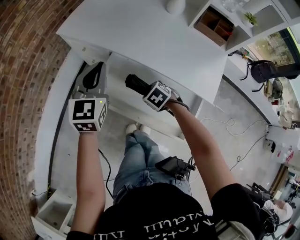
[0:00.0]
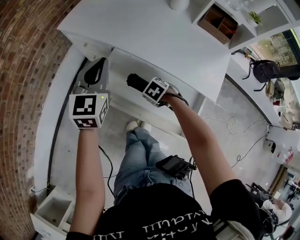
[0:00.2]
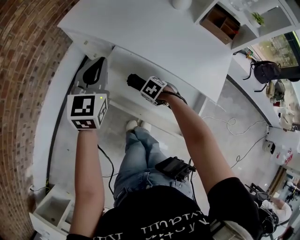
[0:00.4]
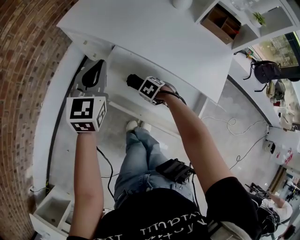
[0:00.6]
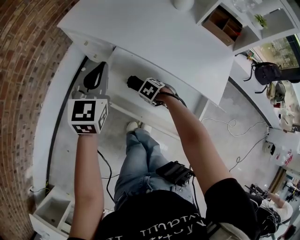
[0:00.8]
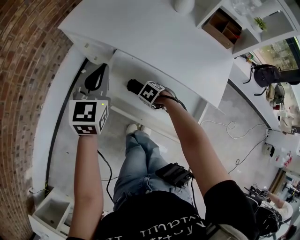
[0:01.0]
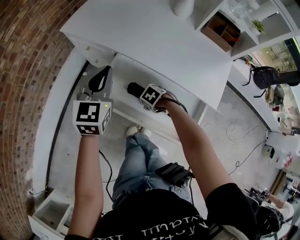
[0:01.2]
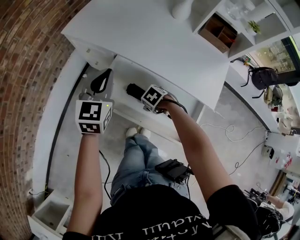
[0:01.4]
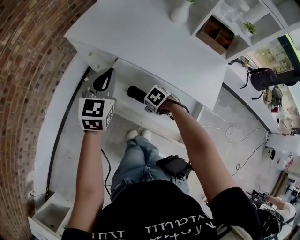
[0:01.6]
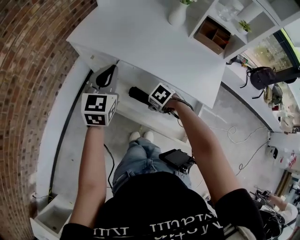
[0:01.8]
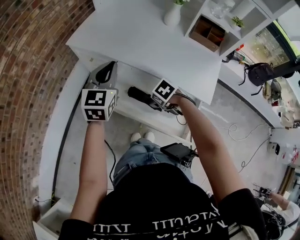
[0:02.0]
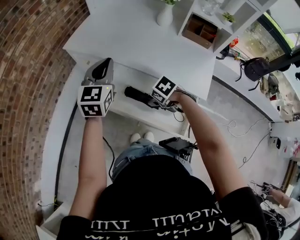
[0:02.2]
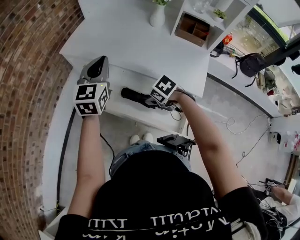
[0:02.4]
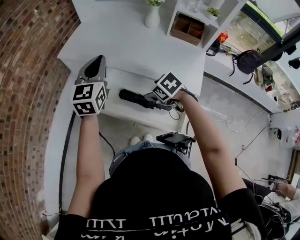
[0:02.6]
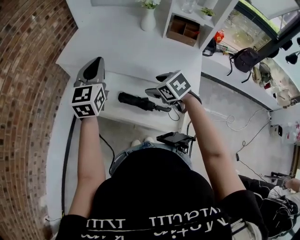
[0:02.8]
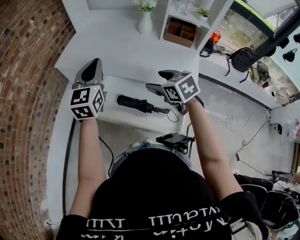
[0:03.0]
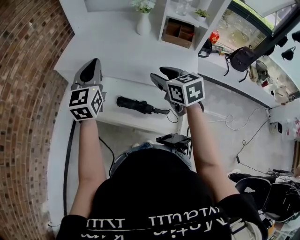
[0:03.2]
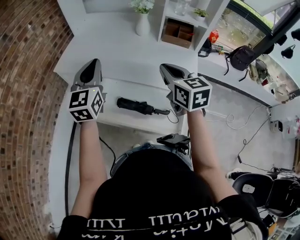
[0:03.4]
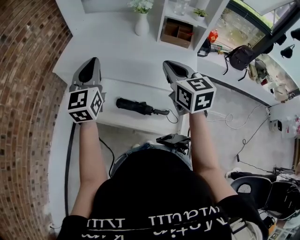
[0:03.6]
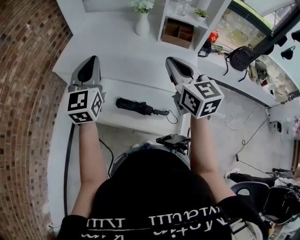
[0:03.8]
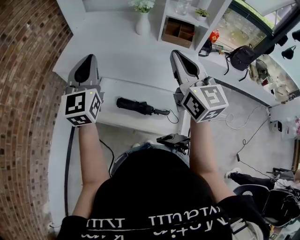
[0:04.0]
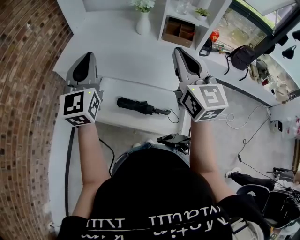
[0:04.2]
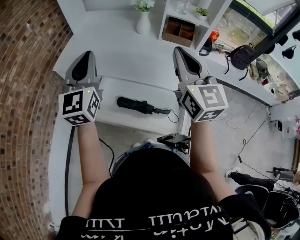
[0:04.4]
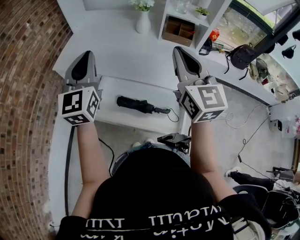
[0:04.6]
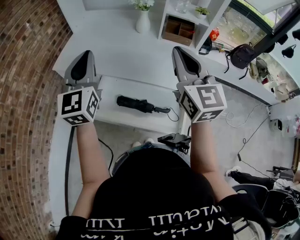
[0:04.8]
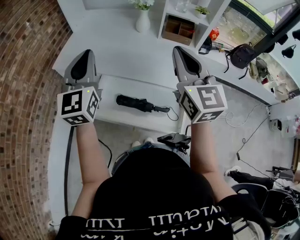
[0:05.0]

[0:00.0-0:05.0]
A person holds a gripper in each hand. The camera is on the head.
0:00.0 to 0:01.6: The right gripper reaches roughly 10 cm downward, then returns, and opens.
0:01.6 to 0:03.4: The right gripper moves upward, about 35 cm, tilts its fingers roughly 60 degrees upward, and closes its fingers. Meanwhile the left gripper goes roughly 15 cm upward.
0:03.4 to 0:05.0: The left gripper shifts roughly 5 cm upward. The right gripper travels upward by approximately 10 cm, and swivels approximately 30 degrees.

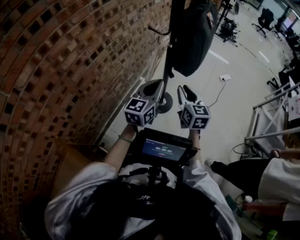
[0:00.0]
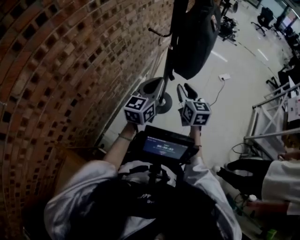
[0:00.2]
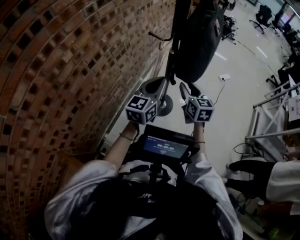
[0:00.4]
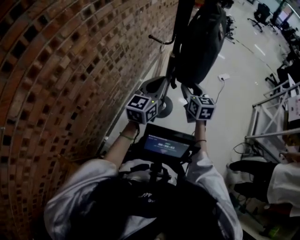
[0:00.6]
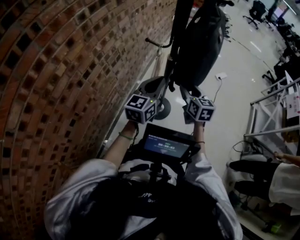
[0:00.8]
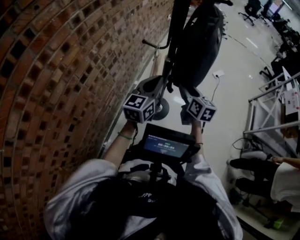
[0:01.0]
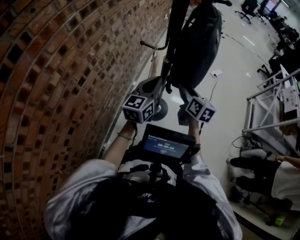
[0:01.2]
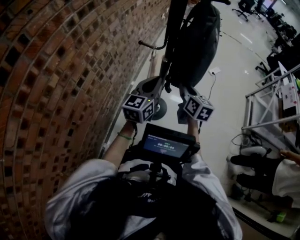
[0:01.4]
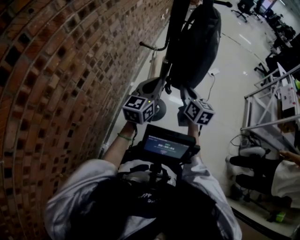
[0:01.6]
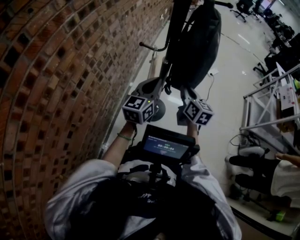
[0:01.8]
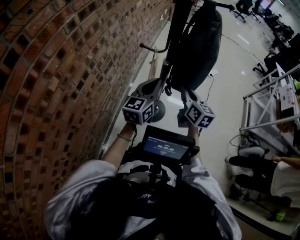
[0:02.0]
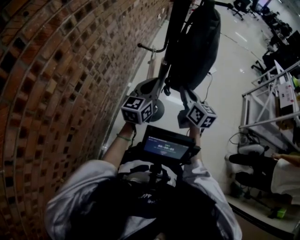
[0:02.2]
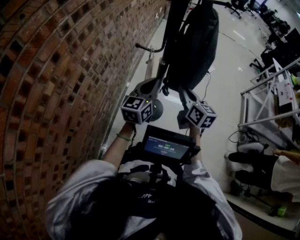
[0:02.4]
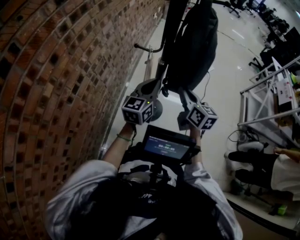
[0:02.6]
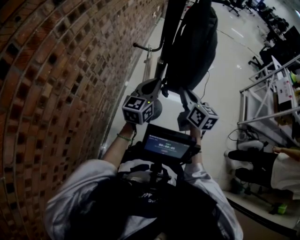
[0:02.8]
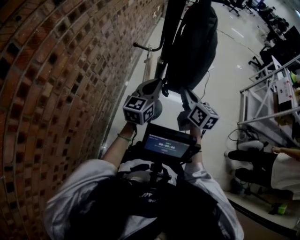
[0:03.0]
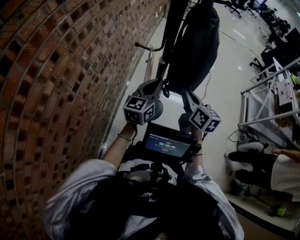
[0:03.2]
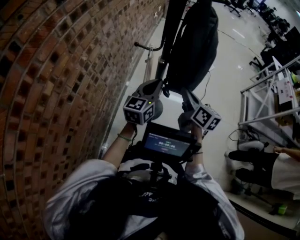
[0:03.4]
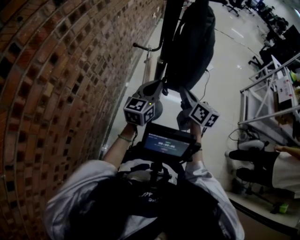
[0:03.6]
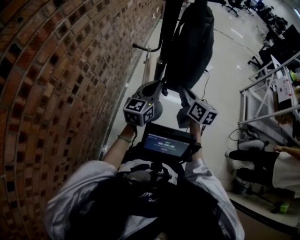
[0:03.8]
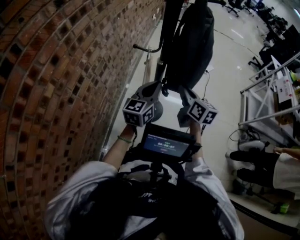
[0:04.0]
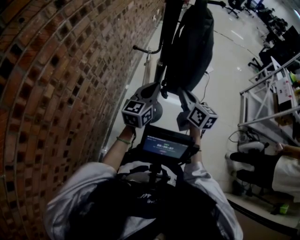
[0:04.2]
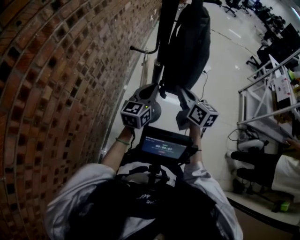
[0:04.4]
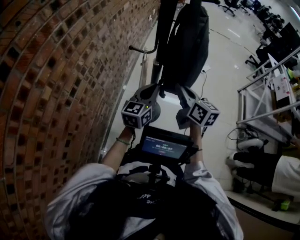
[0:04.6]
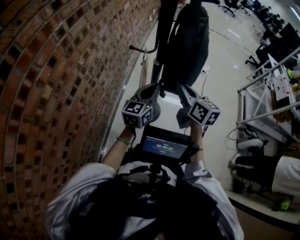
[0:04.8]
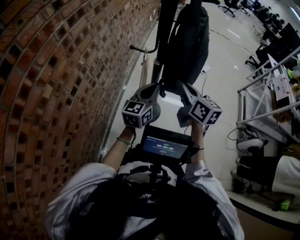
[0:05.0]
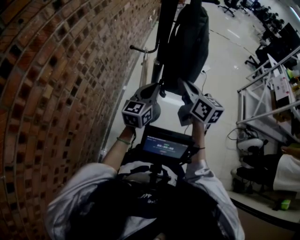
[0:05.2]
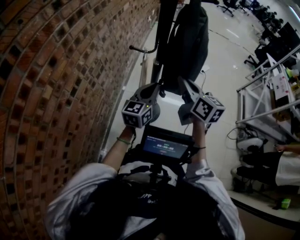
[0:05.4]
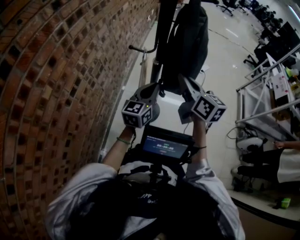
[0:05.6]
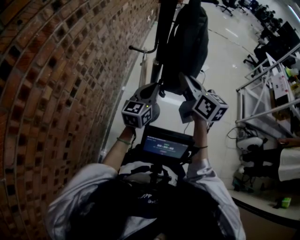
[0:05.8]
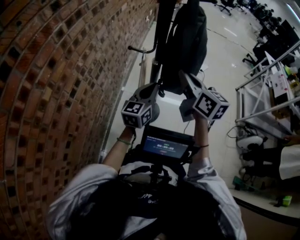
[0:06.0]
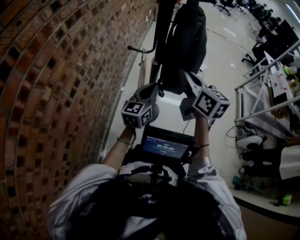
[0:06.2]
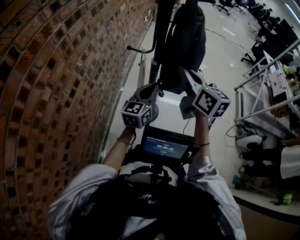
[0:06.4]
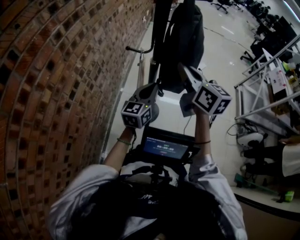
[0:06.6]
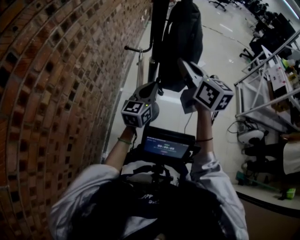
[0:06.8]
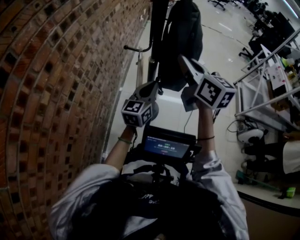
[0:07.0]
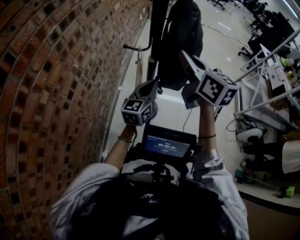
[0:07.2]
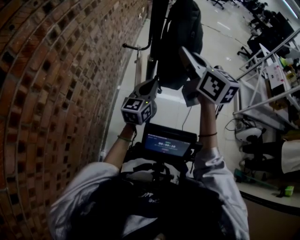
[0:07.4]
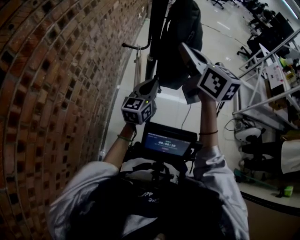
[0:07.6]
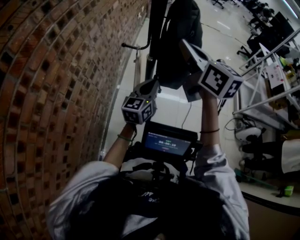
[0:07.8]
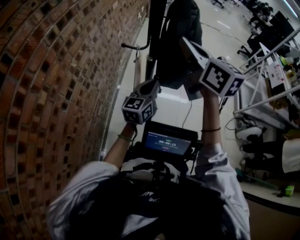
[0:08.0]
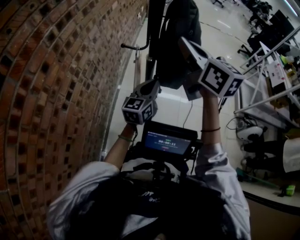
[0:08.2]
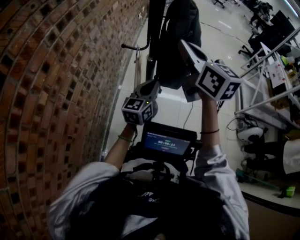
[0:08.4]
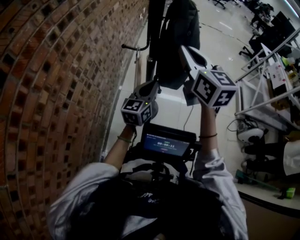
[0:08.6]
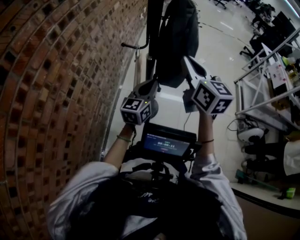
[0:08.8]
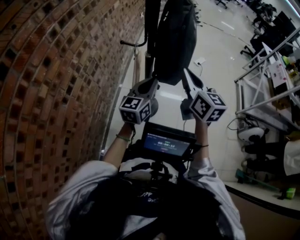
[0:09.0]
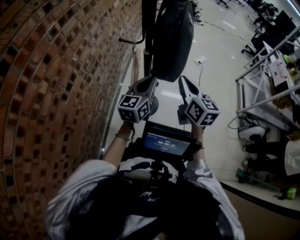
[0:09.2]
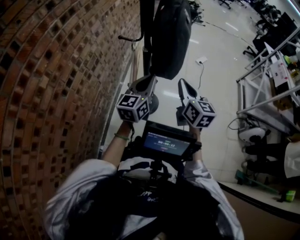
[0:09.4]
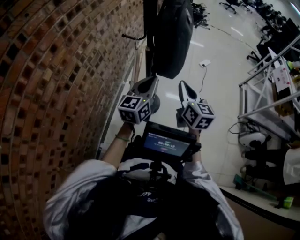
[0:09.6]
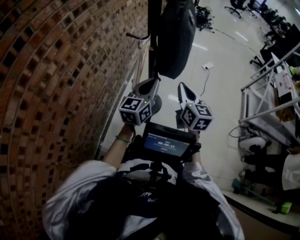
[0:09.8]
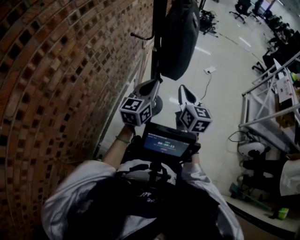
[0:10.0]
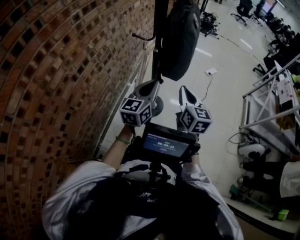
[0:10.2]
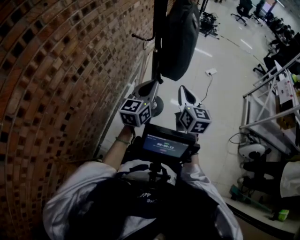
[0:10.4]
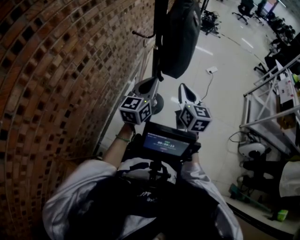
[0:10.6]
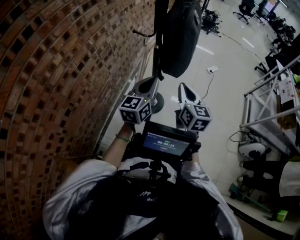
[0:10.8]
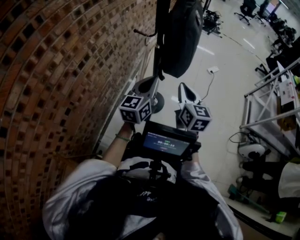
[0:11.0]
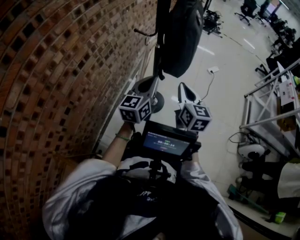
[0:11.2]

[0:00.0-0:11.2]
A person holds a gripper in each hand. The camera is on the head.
0:00.0 to 0:01.6: The two grippers go roughly 15 cm forward. The right gripper turns by approximately 20 degrees, and closes up.
0:01.6 to 0:03.2: The grippers make only small movements.
0:03.2 to 0:04.8: The grippers make only small movements.
0:04.8 to 0:06.4: The right gripper moves upward, some 10 cm.
0:06.4 to 0:08.0: The right gripper is displaced upward by roughly 10 cm.
0:08.0 to 0:09.6: The left gripper shifts some 10 cm backward, while the right gripper travels downward, backward and to the right by roughly 25 cm.
0:09.6 to 0:11.2: The grippers stay close to where they were, moving slightly.

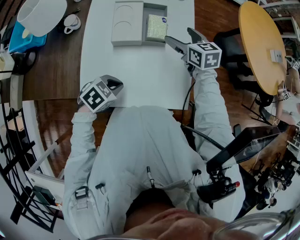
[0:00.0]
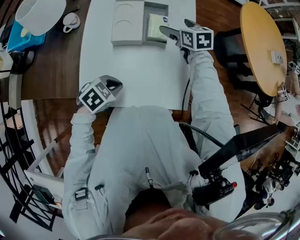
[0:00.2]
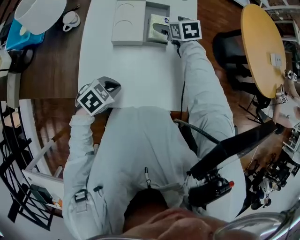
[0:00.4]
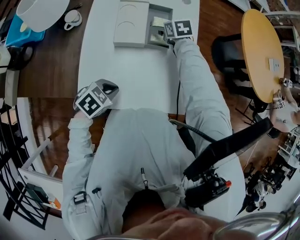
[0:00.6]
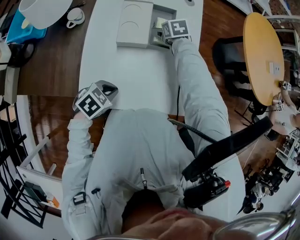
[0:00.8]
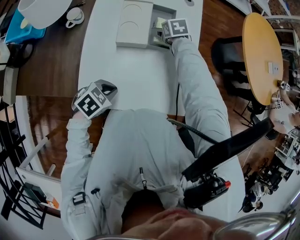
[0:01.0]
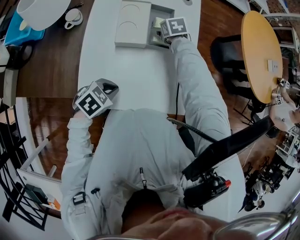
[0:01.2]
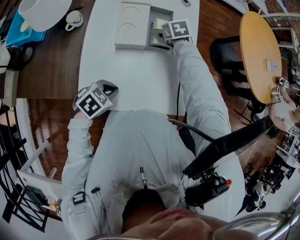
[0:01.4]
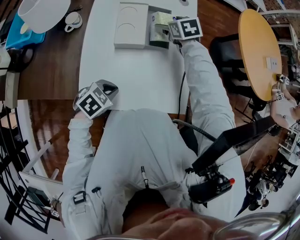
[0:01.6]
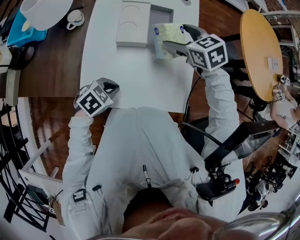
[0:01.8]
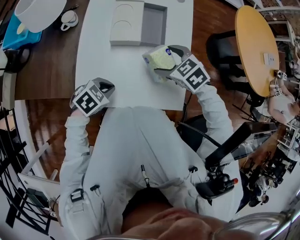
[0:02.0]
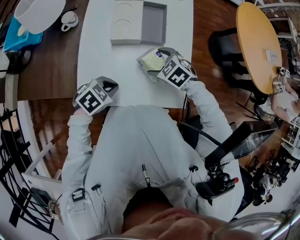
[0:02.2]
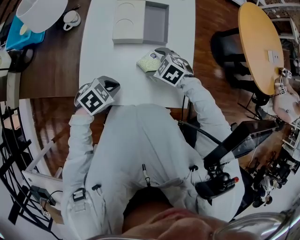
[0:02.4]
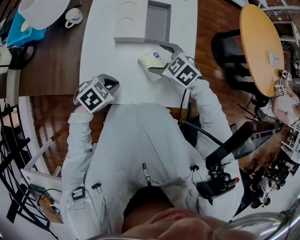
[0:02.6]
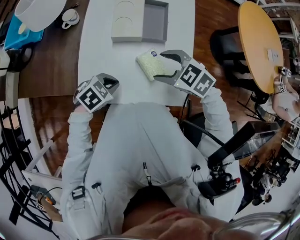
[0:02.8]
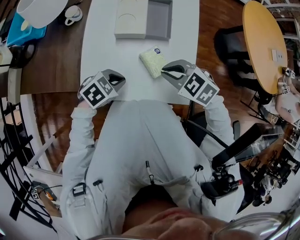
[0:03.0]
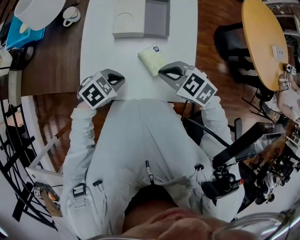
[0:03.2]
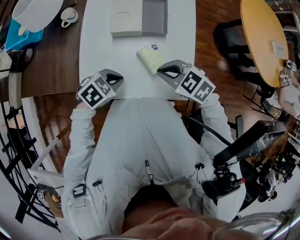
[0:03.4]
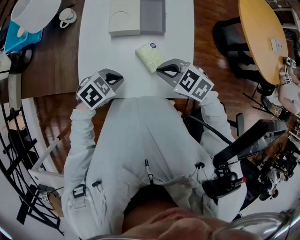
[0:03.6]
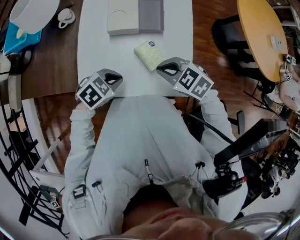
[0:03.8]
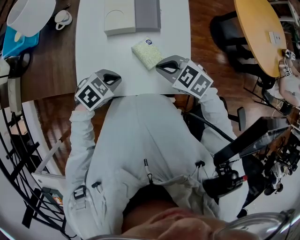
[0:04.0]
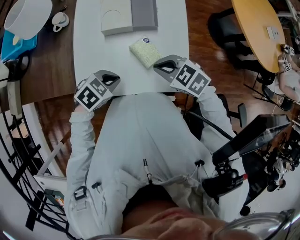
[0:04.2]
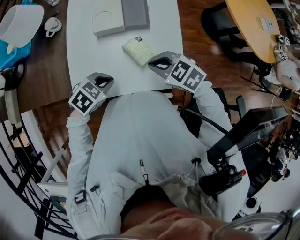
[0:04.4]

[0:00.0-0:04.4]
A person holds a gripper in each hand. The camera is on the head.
0:00.0 to 0:01.4: The right gripper shifts about 15 cm downward, to the left and forward, and rotates about 30 degrees.
0:01.4 to 0:03.0: The right gripper swings up and down, about 15 cm each way, with 2 reversals, changes its angle by roughly 50 degrees, and closes its fingers.
0:03.0 to 0:04.4: The grippers stay close to where they were, moving slightly.

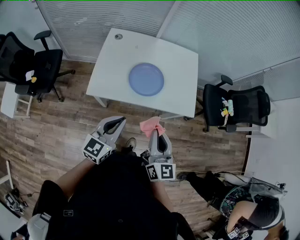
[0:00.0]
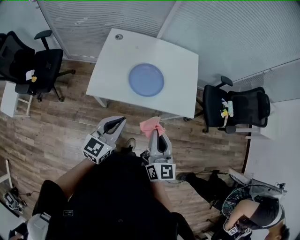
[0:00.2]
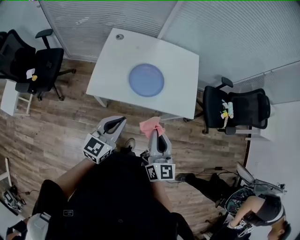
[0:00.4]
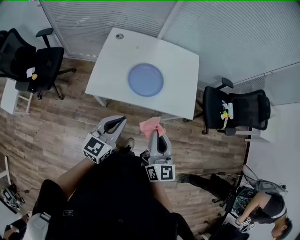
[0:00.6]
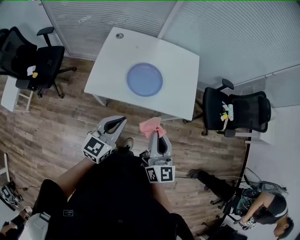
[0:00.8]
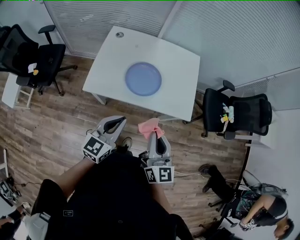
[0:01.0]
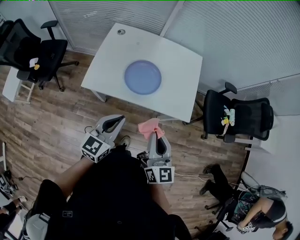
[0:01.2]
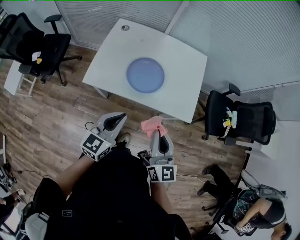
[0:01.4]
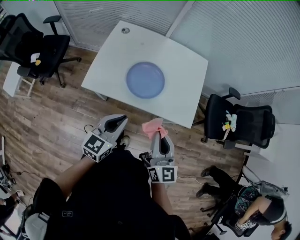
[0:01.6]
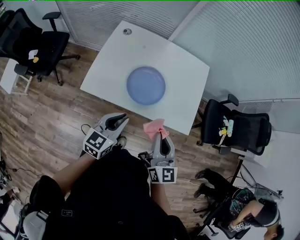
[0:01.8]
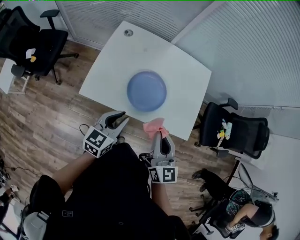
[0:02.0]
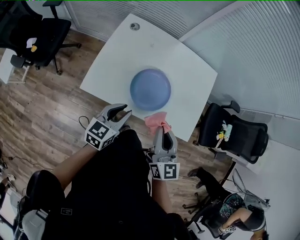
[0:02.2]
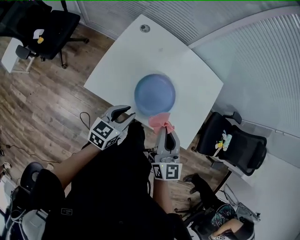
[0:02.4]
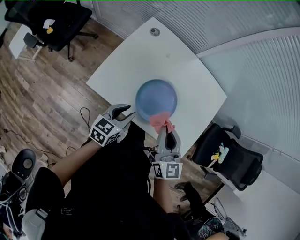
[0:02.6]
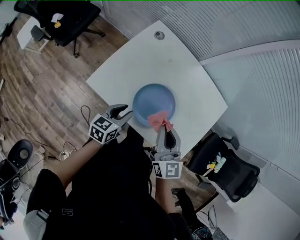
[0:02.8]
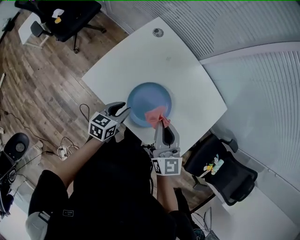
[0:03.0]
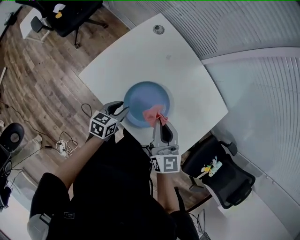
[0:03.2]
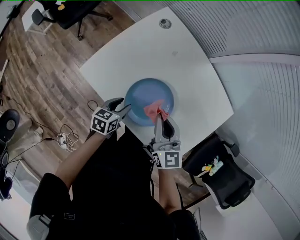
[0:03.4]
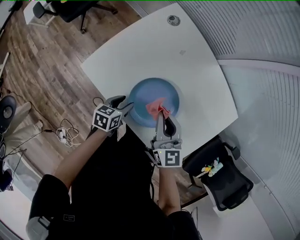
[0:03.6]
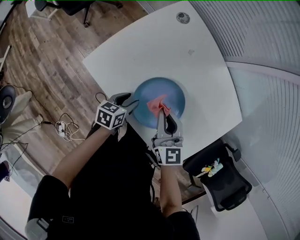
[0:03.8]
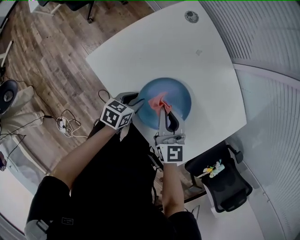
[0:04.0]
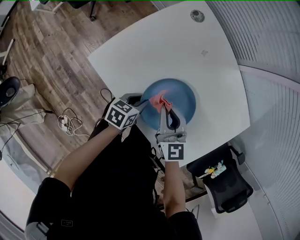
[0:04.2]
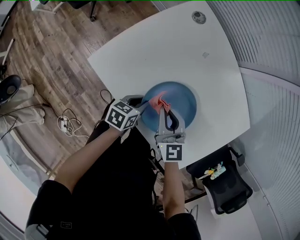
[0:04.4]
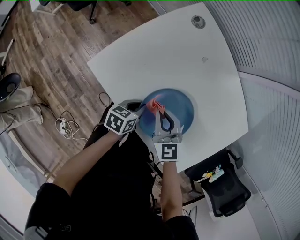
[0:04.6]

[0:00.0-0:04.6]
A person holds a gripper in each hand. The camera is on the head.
0:00.0 to 0:01.6: The left gripper is displaced to the right and forward by about 10 cm; the right gripper is displaced forward and to the right by approximately 10 cm.
0:01.6 to 0:03.0: The right gripper goes roughly 25 cm forward, and swivels roughly 30 degrees; the left gripper is displaced forward and downward by approximately 25 cm, turns by about 40 degrees, and opens its fingers.
0:03.0 to 0:04.6: The right gripper shifts roughly 20 cm downward and to the left, and changes its angle by about 30 degrees; the left gripper goes approximately 15 cm downward, rotates approximately 20 degrees, and closes its fingers.
